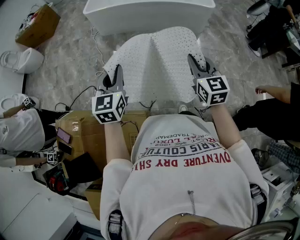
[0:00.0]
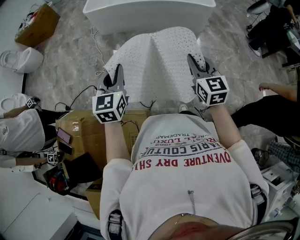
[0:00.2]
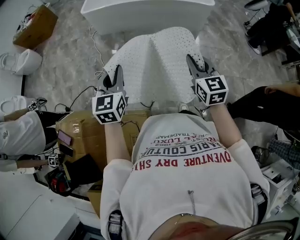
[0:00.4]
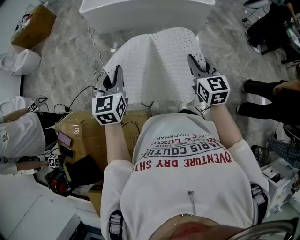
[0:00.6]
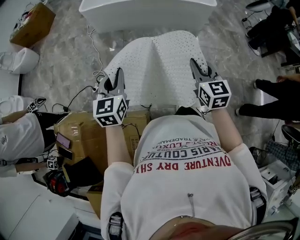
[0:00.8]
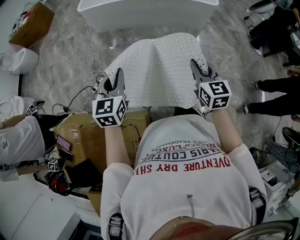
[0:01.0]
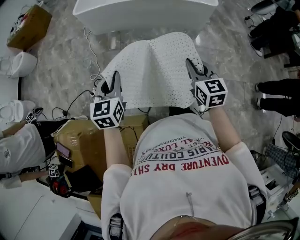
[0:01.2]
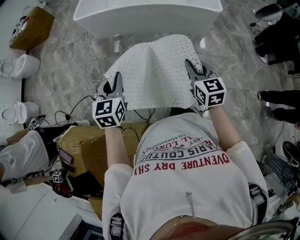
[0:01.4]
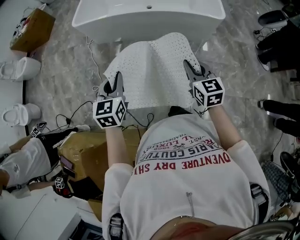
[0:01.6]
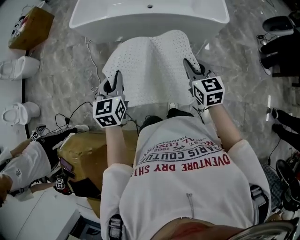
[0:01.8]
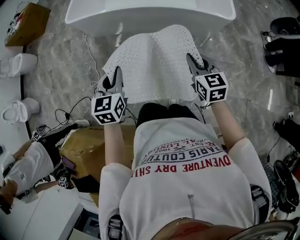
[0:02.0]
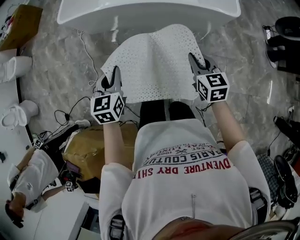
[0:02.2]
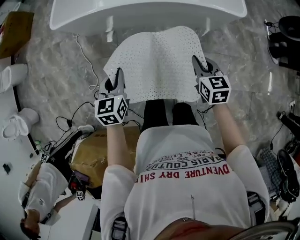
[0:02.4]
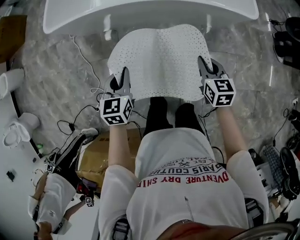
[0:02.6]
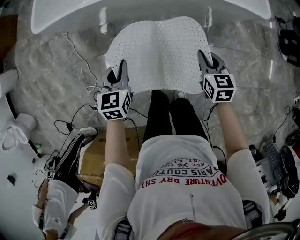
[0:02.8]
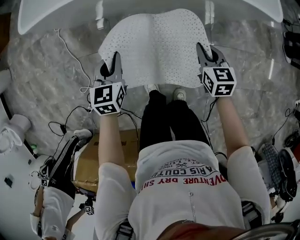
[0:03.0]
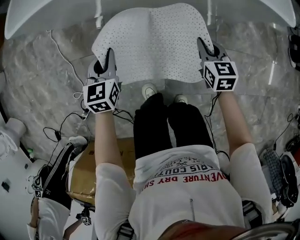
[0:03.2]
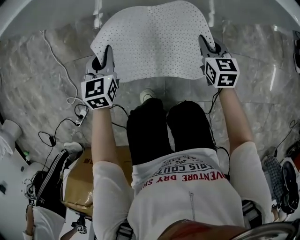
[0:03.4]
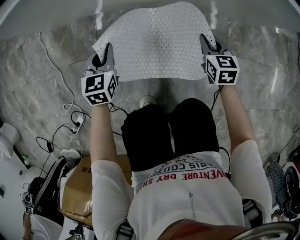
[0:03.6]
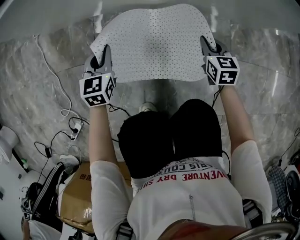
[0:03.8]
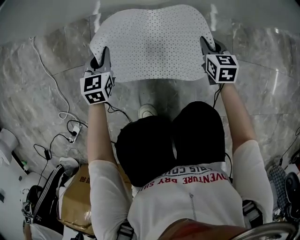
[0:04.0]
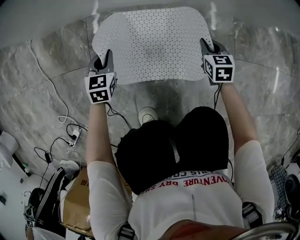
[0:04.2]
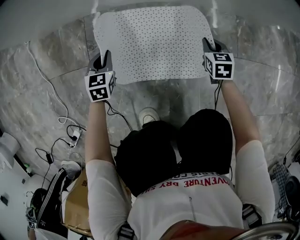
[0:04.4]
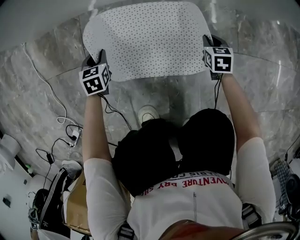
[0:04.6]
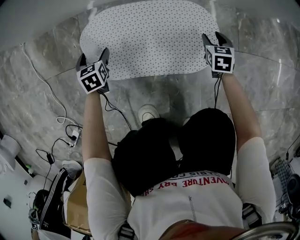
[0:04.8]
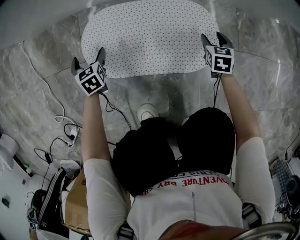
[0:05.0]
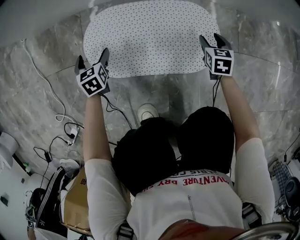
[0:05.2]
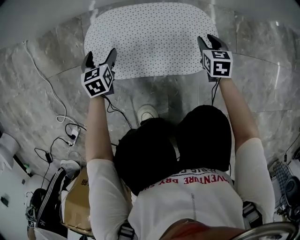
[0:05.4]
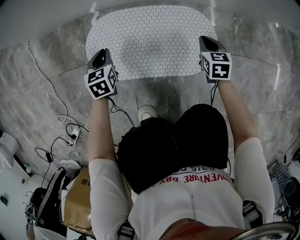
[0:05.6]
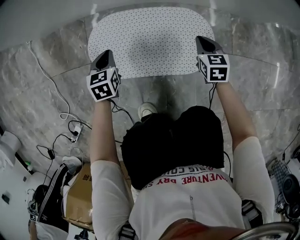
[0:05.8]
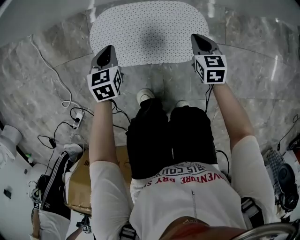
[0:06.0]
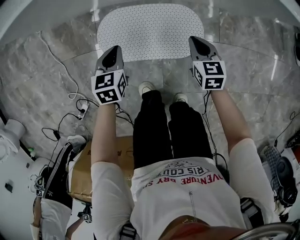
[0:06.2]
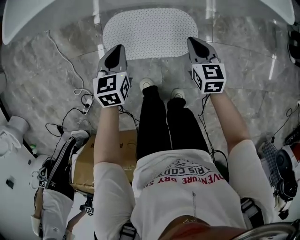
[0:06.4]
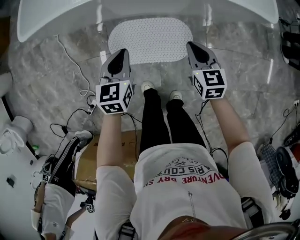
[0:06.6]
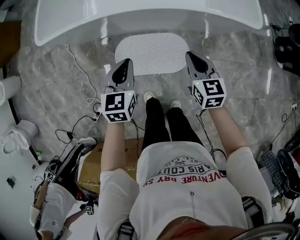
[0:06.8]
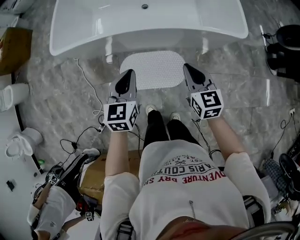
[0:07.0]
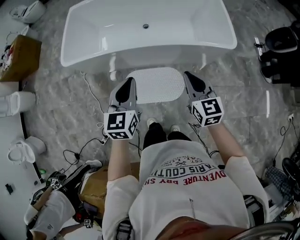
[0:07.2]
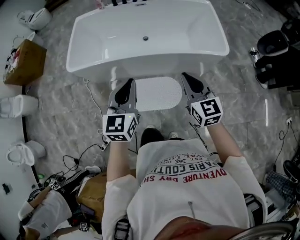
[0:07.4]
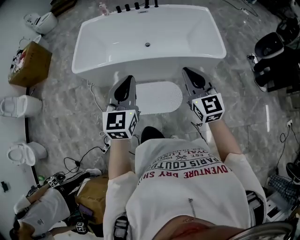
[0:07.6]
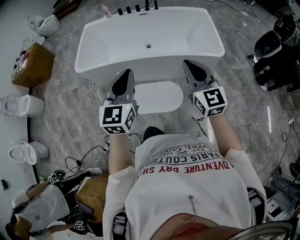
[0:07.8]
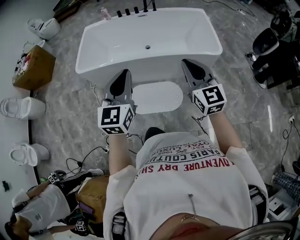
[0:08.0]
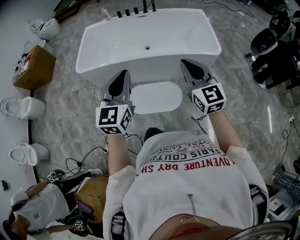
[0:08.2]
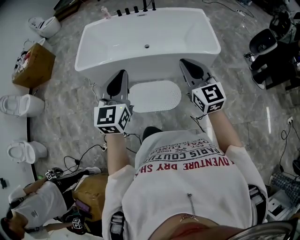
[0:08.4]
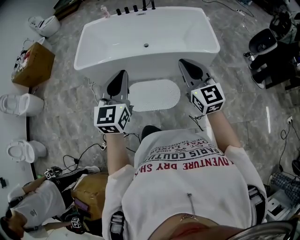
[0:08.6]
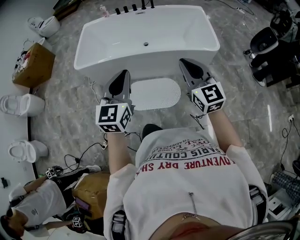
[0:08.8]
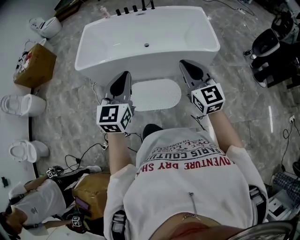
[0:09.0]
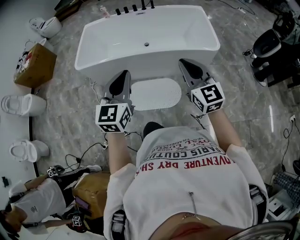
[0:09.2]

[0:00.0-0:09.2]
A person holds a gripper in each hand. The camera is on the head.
0:00.0 to 0:01.6: The two grippers go some 30 cm forward.
0:01.6 to 0:03.0: Both grippers move downward and forward, some 50 cm. The right gripper turns by approximately 20 degrees.
0:03.0 to 0:04.6: Both grippers move downward, roughly 50 cm.
0:04.6 to 0:06.2: Both grippers move upward, some 25 cm. The right gripper opens and closes again; the left gripper opens, then closes again.
0:06.2 to 0:07.6: The grippers both shift upward by roughly 70 cm. The left gripper tips its fingers upward by about 40 degrees. The right gripper tilts its fingers about 40 degrees upward.
0:07.6 to 0:09.2: The grippers both shift backward by about 10 cm.

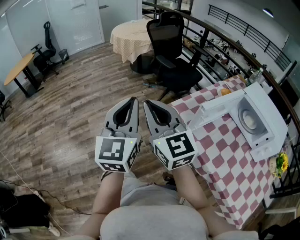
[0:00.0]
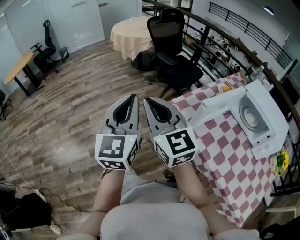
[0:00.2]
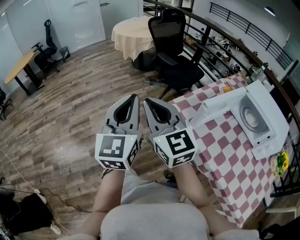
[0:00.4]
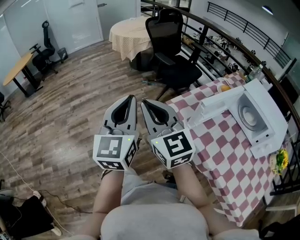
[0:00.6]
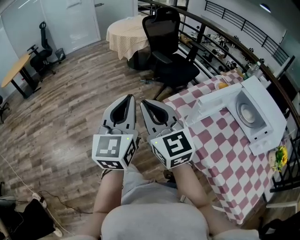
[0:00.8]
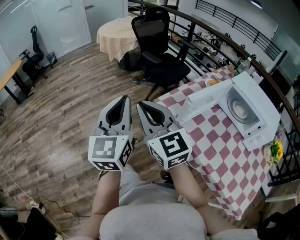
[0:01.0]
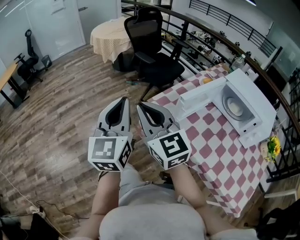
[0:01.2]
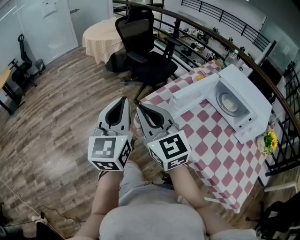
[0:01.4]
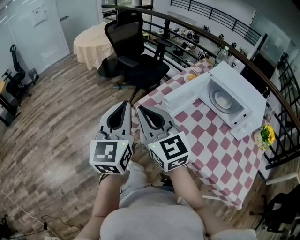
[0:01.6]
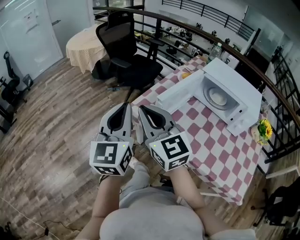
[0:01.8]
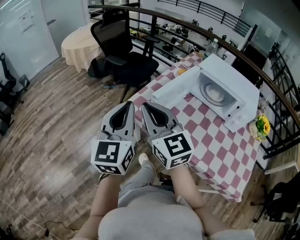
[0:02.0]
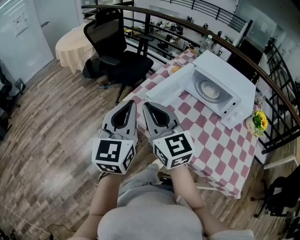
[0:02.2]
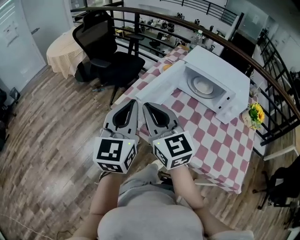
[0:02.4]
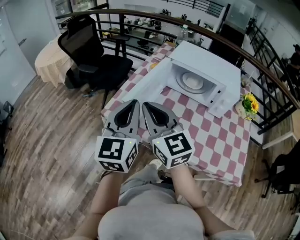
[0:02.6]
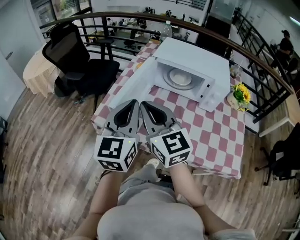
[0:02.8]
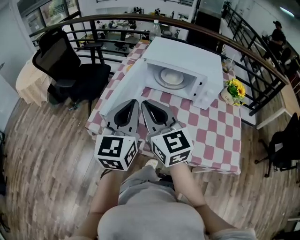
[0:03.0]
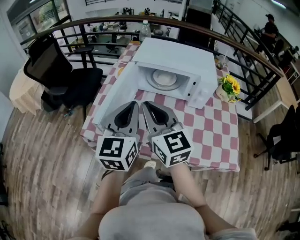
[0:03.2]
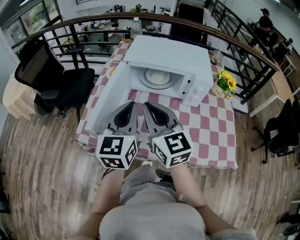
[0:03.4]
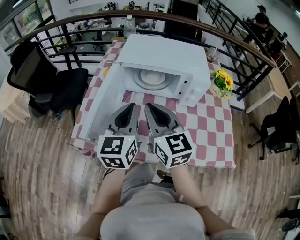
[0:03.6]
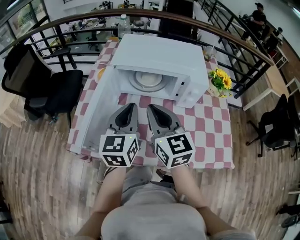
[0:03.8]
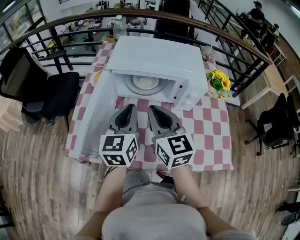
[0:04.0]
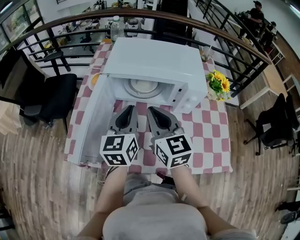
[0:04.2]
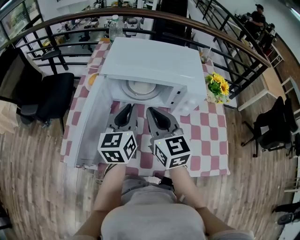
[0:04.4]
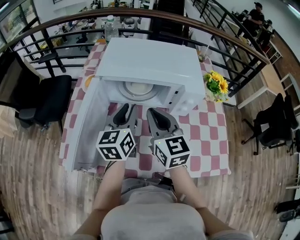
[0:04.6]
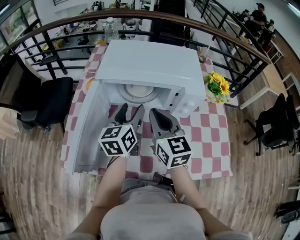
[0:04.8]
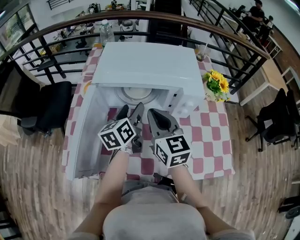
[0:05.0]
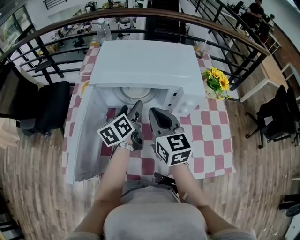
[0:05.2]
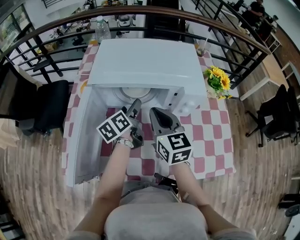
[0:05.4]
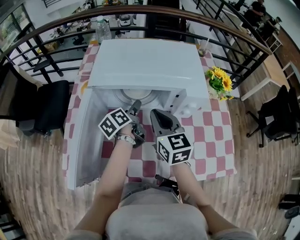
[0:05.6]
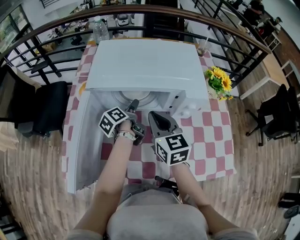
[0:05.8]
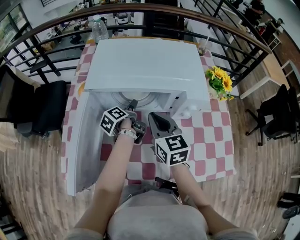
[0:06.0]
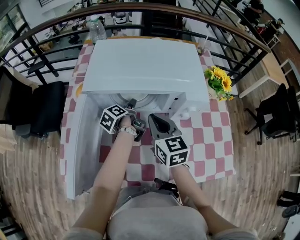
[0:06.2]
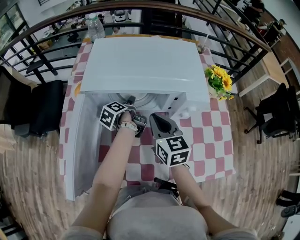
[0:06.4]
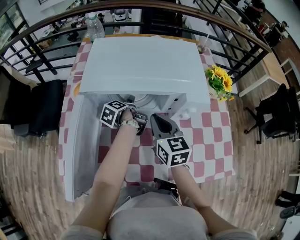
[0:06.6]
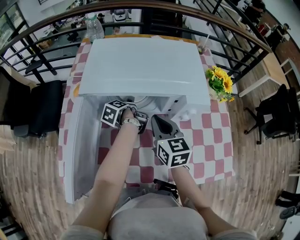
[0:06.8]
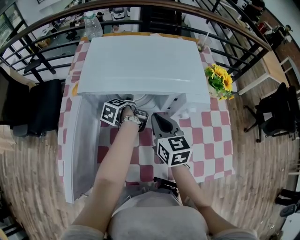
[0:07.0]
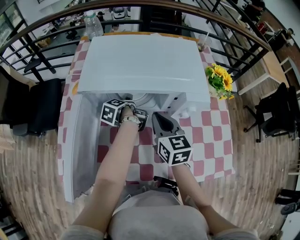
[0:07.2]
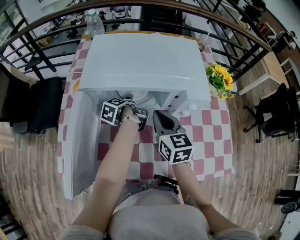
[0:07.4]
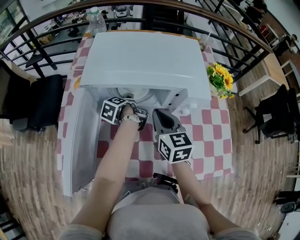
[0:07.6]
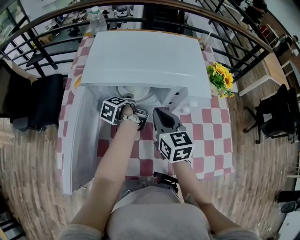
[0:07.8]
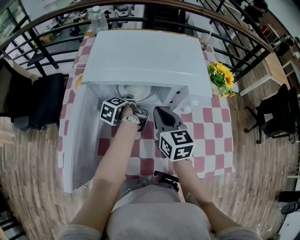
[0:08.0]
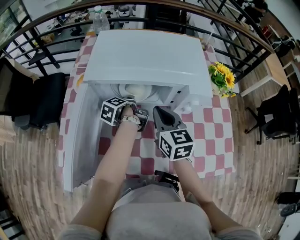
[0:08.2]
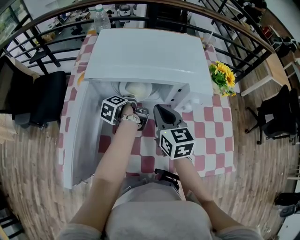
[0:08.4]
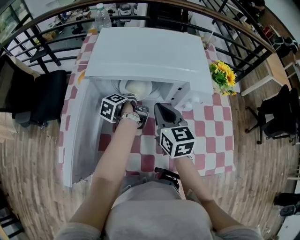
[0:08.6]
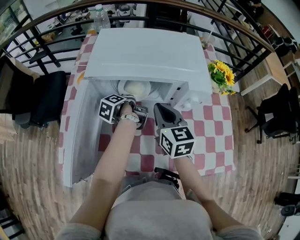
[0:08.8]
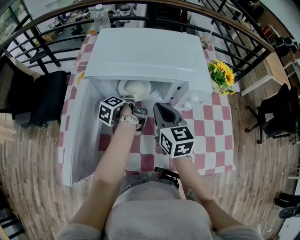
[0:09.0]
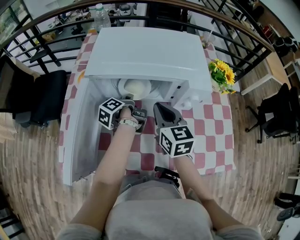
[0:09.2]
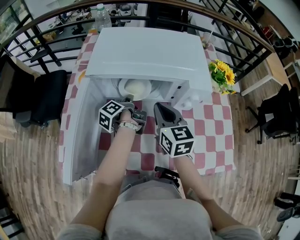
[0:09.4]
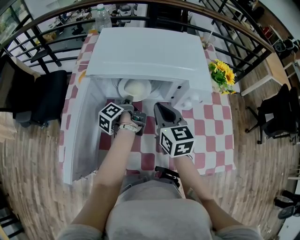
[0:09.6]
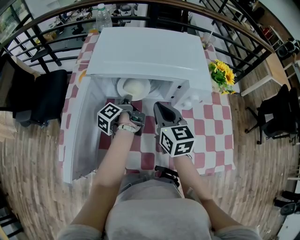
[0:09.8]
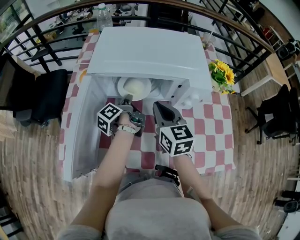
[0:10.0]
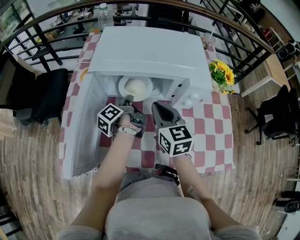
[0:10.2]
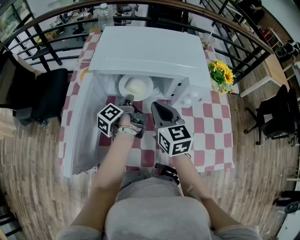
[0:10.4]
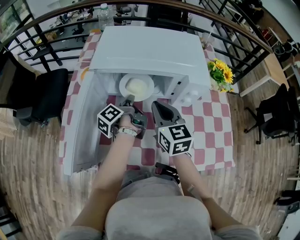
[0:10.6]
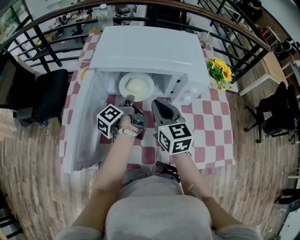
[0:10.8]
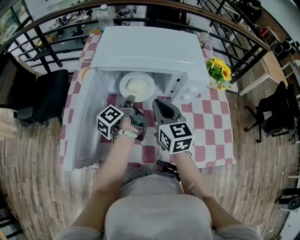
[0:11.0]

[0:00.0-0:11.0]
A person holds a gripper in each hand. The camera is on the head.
0:00.0 to 0:01.6: Both grippers travel together to the right, some 10 cm.
0:01.6 to 0:03.2: The left gripper changes place by roughly 30 cm, and rotates about 40 degrees, while the right gripper ends up some 30 cm from where it was, and changes its angle by about 40 degrees.
0:03.2 to 0:04.8: The left gripper goes about 25 cm forward, downward and to the right, turns by approximately 30 degrees, and opens up; the right gripper shifts some 20 cm forward, to the right and downward.
0:04.8 to 0:06.2: The left gripper moves downward and forward, approximately 20 cm, and rotates around the line of its fingers by roughly 50 degrees, counterclockwise from behind. Meanwhile the right gripper shifts roughly 10 cm downward and forward.
0:06.2 to 0:07.8: The grippers stay close to where they were, moving slightly.
0:07.8 to 0:09.4: The left gripper closes up.
0:09.4 to 0:11.0: The left gripper goes approximately 5 cm backward and upward.

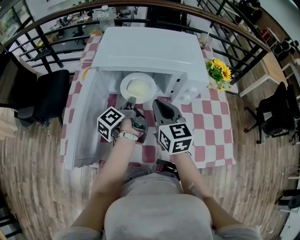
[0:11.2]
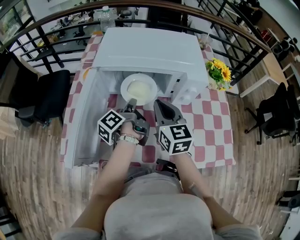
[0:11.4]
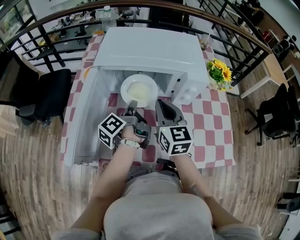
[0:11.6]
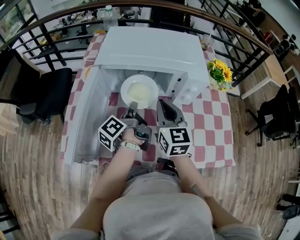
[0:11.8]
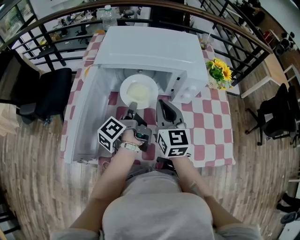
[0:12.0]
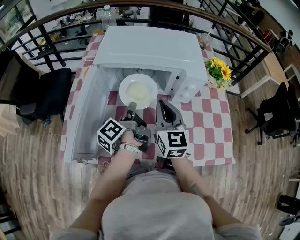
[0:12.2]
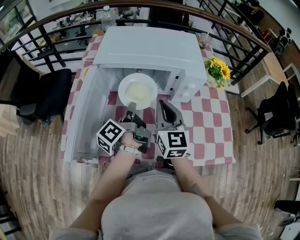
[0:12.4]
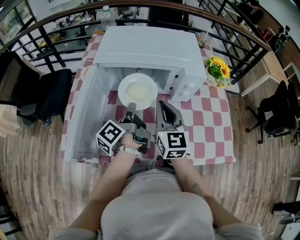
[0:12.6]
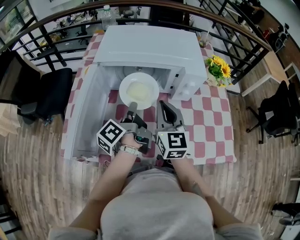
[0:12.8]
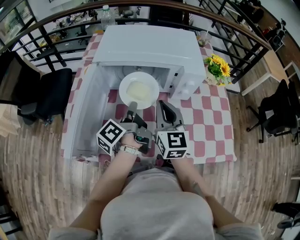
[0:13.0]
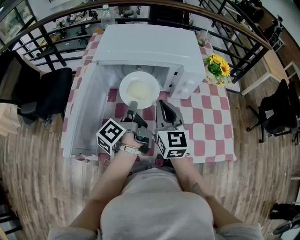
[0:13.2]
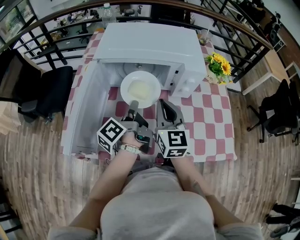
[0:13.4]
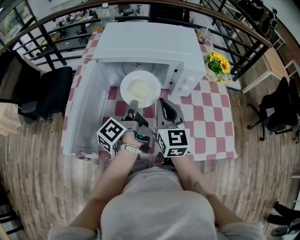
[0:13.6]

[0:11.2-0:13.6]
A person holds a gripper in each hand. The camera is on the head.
0:11.2 to 0:12.4: The left gripper is displaced backward by some 5 cm.
0:12.4 to 0:13.6: The grippers move only a little.

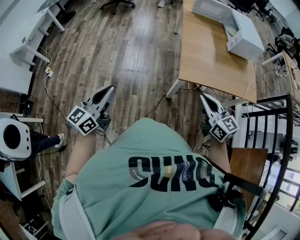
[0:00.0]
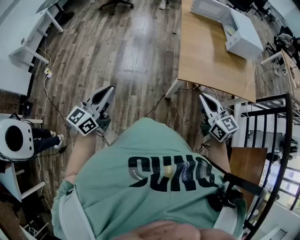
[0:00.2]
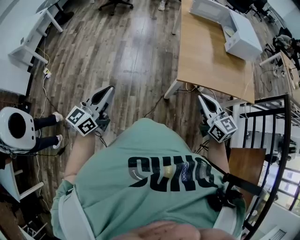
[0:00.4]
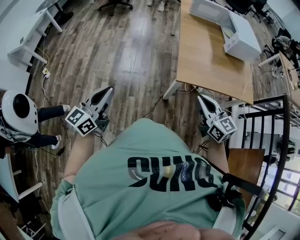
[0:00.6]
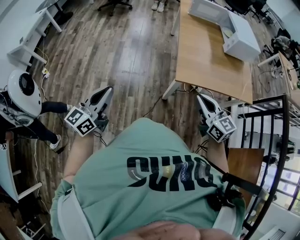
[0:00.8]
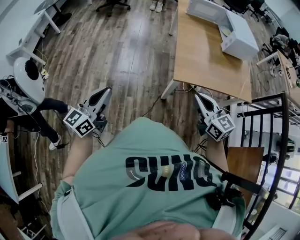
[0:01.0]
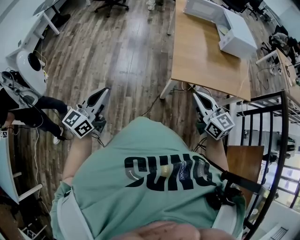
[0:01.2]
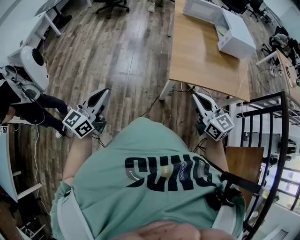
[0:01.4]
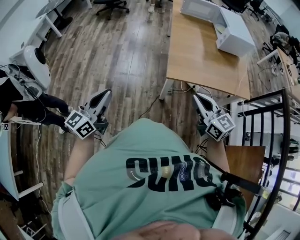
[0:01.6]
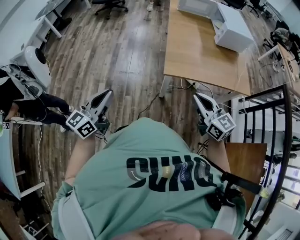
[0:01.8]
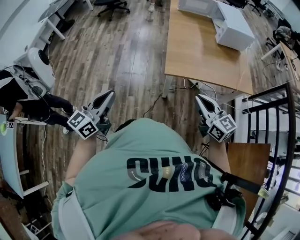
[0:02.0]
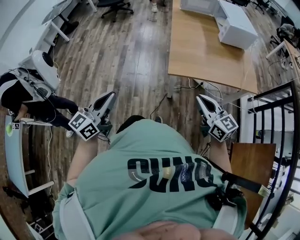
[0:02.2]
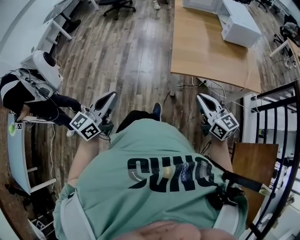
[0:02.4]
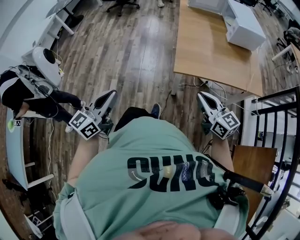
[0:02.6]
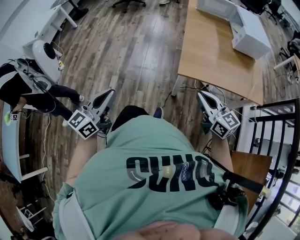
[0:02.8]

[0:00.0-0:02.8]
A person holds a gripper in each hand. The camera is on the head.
0:00.0 to 0:01.4: The grippers stay close to where they were, moving slightly.
